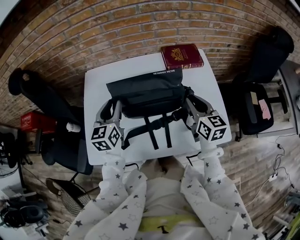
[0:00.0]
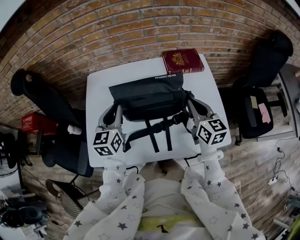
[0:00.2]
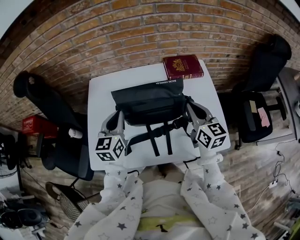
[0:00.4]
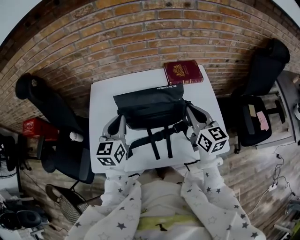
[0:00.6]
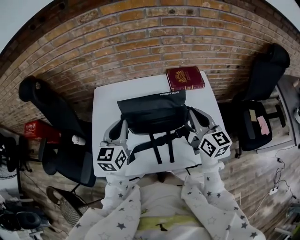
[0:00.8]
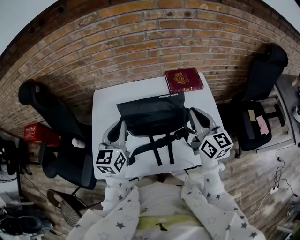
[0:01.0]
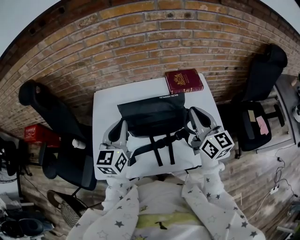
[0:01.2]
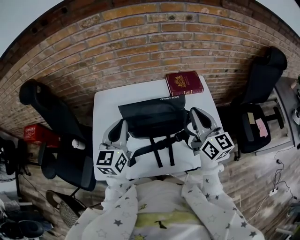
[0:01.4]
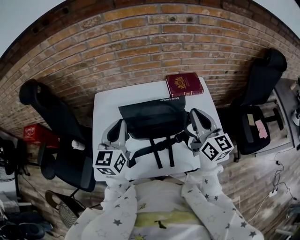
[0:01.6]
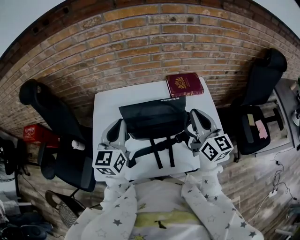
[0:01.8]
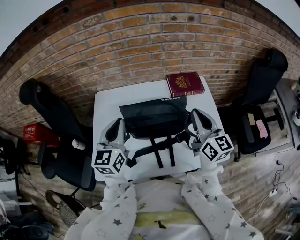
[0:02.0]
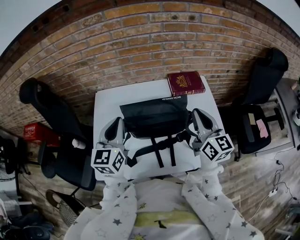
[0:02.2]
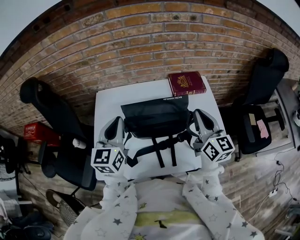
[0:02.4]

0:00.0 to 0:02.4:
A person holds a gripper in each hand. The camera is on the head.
0:00.0 to 0:01.2: Both grippers move upward, approximately 10 cm. The right gripper closes its fingers. The left gripper closes up.
0:01.2 to 0:02.4: The grippers stay close to where they were, moving slightly.

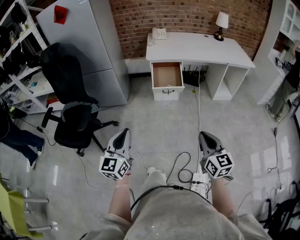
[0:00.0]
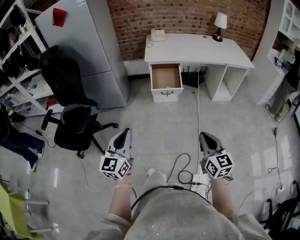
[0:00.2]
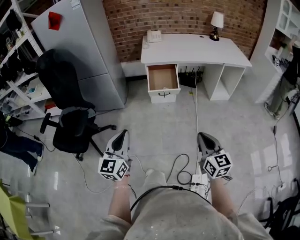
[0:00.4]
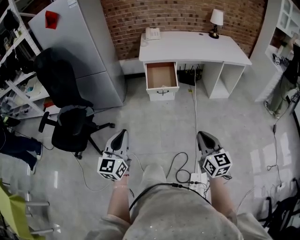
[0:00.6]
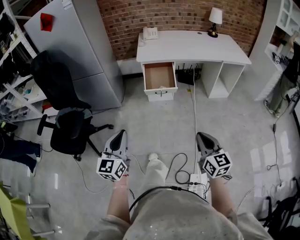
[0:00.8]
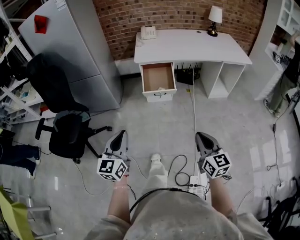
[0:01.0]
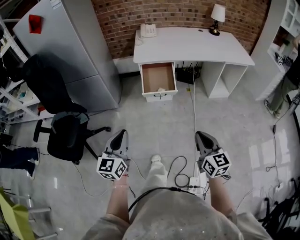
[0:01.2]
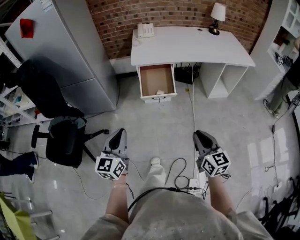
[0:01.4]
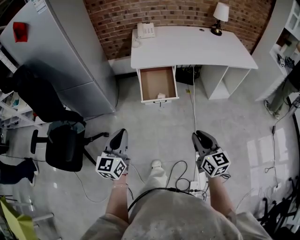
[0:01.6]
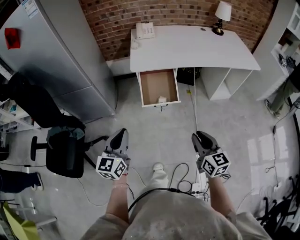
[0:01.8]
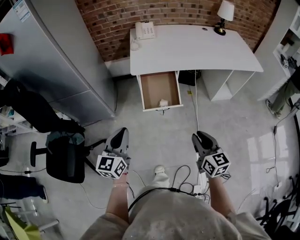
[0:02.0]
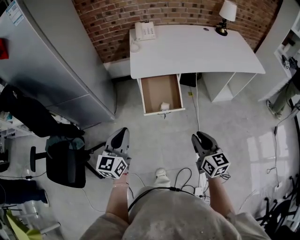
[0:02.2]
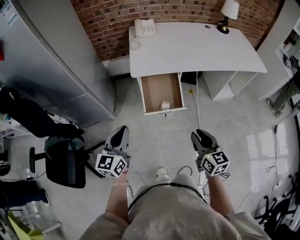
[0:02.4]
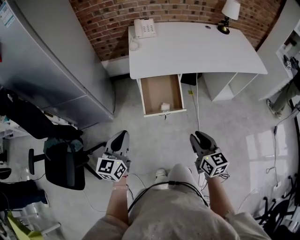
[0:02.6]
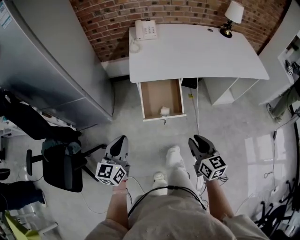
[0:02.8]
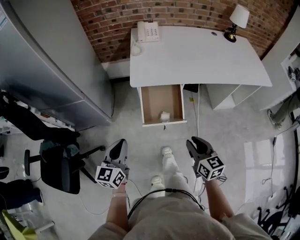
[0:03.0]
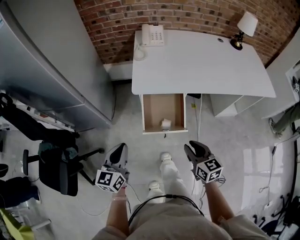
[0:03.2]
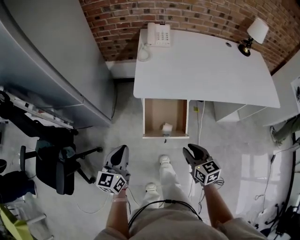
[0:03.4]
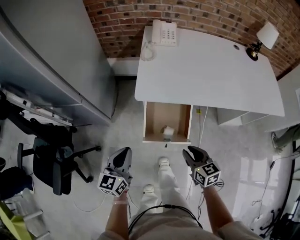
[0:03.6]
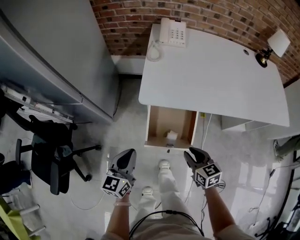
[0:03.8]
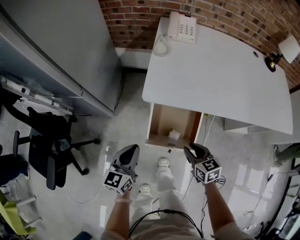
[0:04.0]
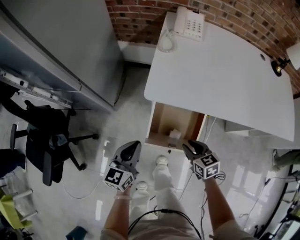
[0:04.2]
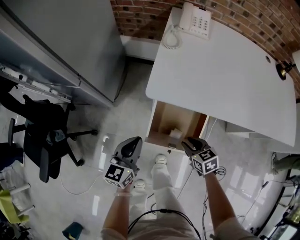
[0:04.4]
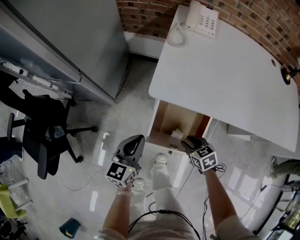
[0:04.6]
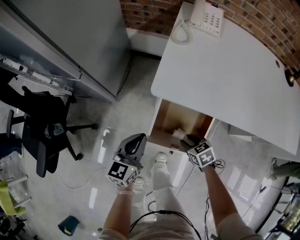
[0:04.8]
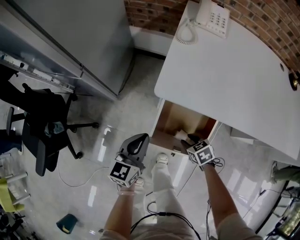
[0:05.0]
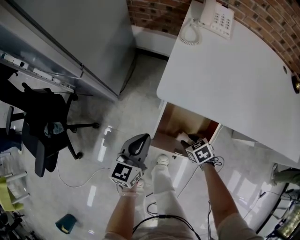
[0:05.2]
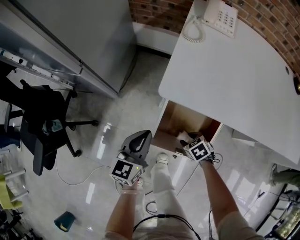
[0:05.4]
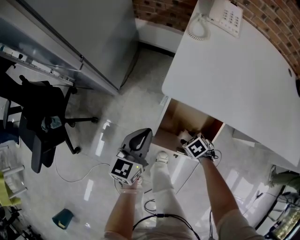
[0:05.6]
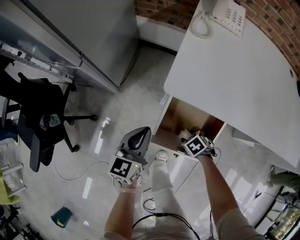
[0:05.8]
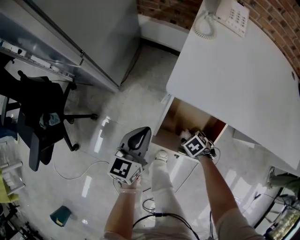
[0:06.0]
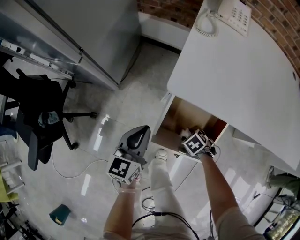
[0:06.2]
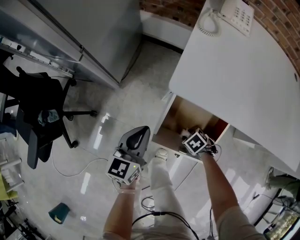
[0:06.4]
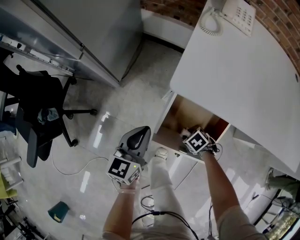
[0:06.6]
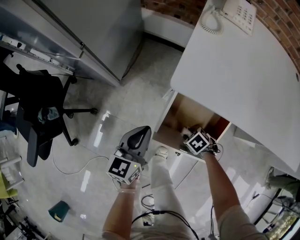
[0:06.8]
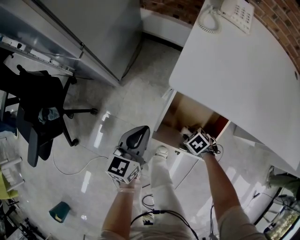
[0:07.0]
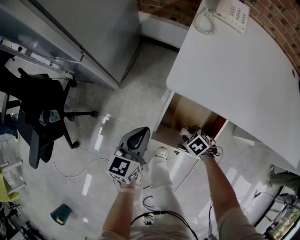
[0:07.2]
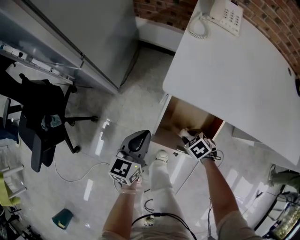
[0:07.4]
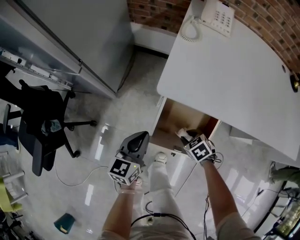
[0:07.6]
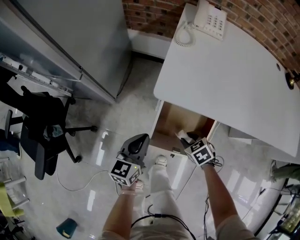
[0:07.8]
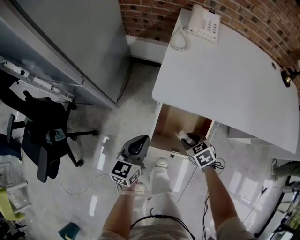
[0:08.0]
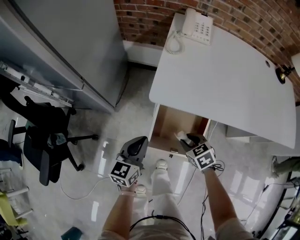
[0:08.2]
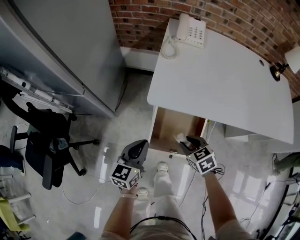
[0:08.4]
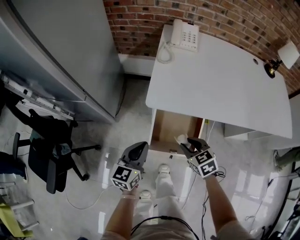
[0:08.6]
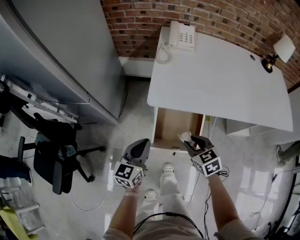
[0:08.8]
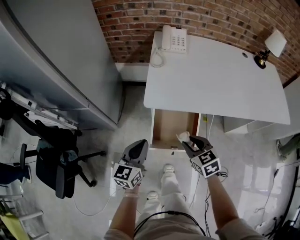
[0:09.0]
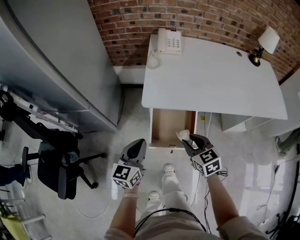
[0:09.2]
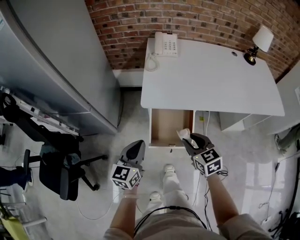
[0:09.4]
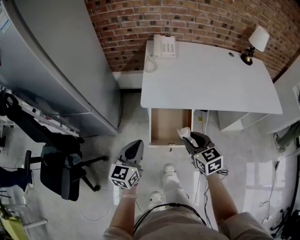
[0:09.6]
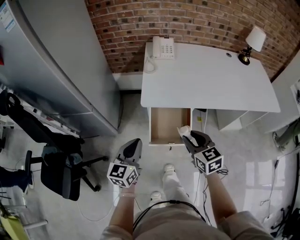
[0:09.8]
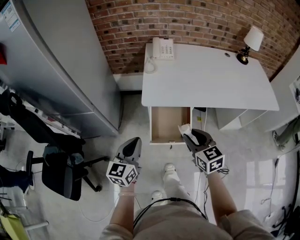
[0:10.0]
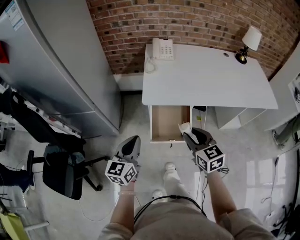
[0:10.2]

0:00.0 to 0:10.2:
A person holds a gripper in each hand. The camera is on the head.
0:00.0 to 0:01.4: Both grippers move forward, roughly 15 cm.
0:01.4 to 0:03.0: Both grippers travel together forward, roughly 25 cm.
0:03.0 to 0:04.4: The right gripper moves forward and downward, approximately 30 cm, and rotates roughly 40 degrees; the left gripper is displaced forward, downward and to the right by approximately 20 cm.
0:04.4 to 0:05.8: The right gripper goes about 15 cm downward, and points its fingers some 30 degrees further downward; the left gripper travels downward by about 5 cm.
0:05.8 to 0:07.2: The grippers stay close to where they were, moving slightly.
0:07.2 to 0:08.8: The left gripper goes roughly 10 cm upward; the right gripper shifts approximately 25 cm upward, and tilts its fingers about 30 degrees upward.
0:08.8 to 0:10.2: The grippers both shift upward and backward by approximately 15 cm. The right gripper changes its angle by about 20 degrees.

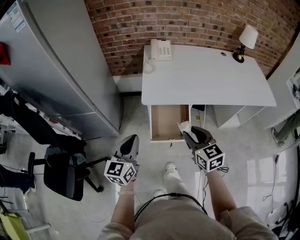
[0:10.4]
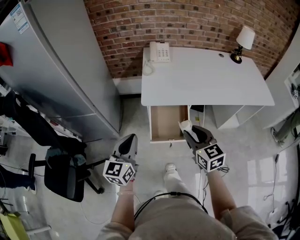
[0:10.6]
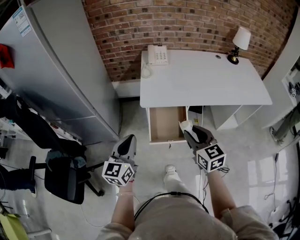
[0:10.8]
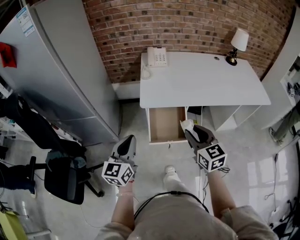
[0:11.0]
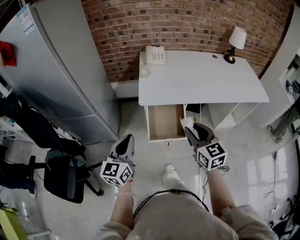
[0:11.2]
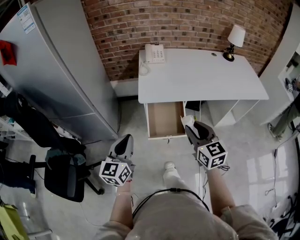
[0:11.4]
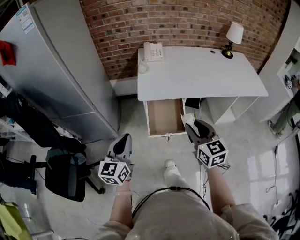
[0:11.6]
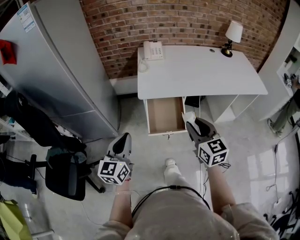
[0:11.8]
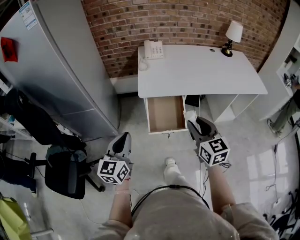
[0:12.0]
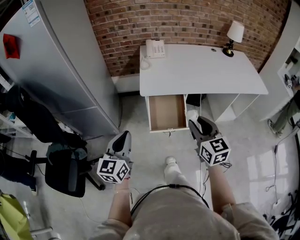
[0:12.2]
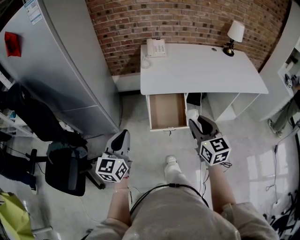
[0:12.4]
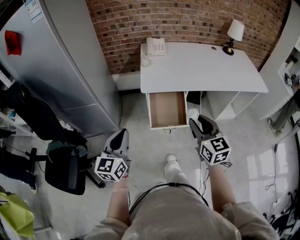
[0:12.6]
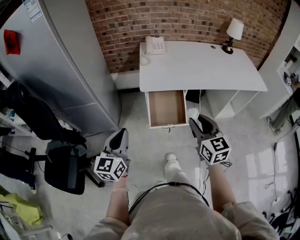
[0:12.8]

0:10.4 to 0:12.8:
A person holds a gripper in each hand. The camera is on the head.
0:10.4 to 0:11.6: The right gripper heads upward and backward, covering some 10 cm. Meanwhile the left gripper travels backward by approximately 5 cm.
0:11.6 to 0:12.8: The grippers move only a little.

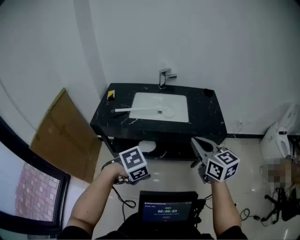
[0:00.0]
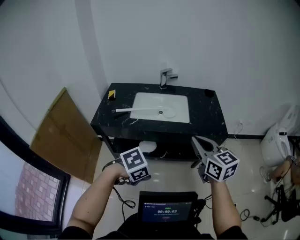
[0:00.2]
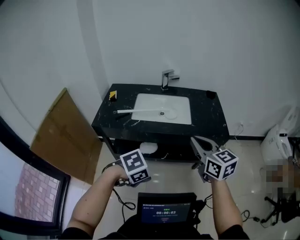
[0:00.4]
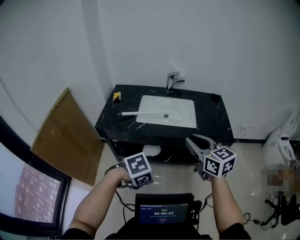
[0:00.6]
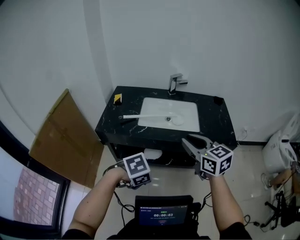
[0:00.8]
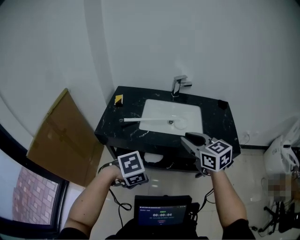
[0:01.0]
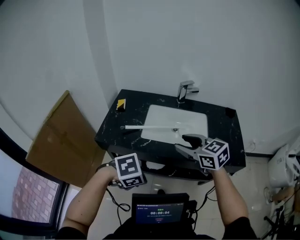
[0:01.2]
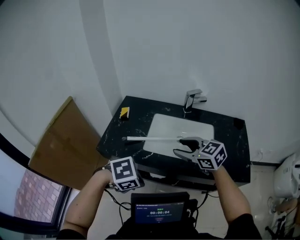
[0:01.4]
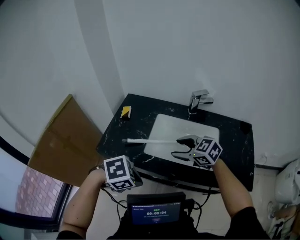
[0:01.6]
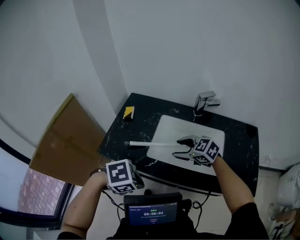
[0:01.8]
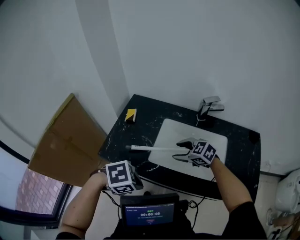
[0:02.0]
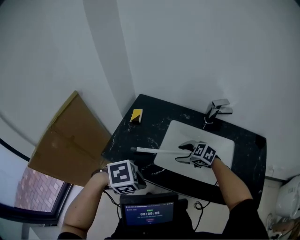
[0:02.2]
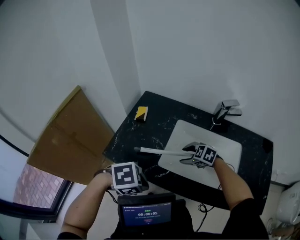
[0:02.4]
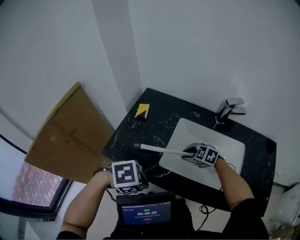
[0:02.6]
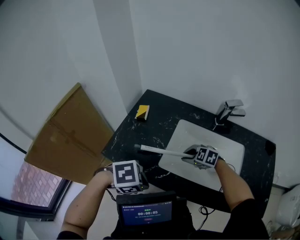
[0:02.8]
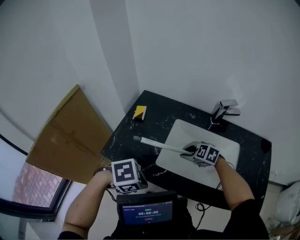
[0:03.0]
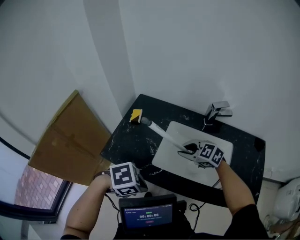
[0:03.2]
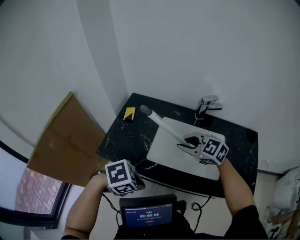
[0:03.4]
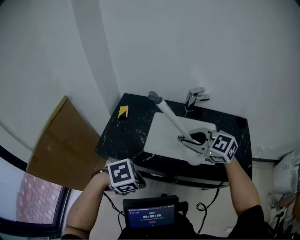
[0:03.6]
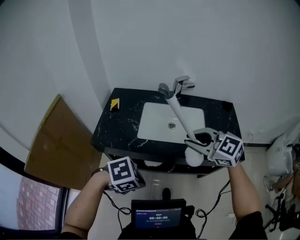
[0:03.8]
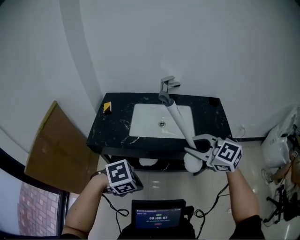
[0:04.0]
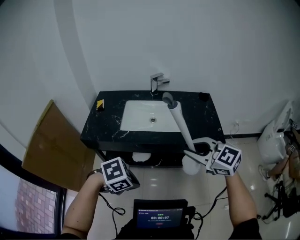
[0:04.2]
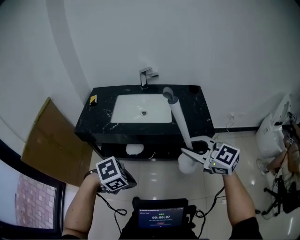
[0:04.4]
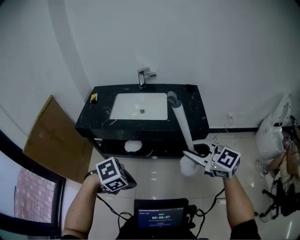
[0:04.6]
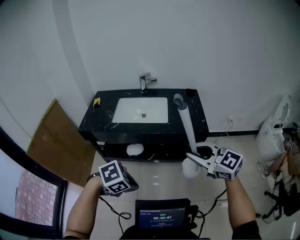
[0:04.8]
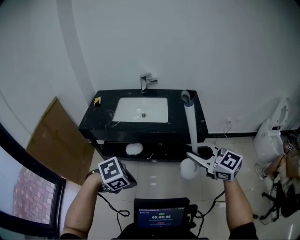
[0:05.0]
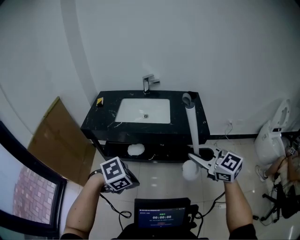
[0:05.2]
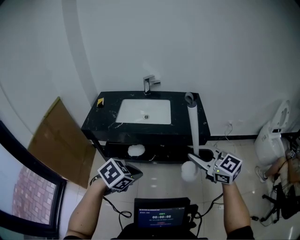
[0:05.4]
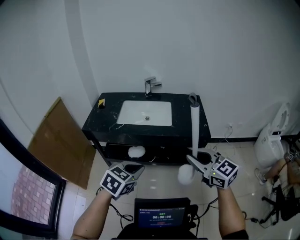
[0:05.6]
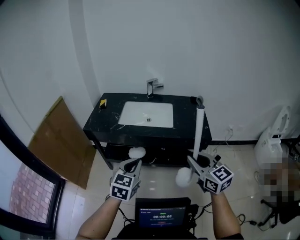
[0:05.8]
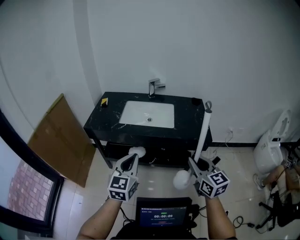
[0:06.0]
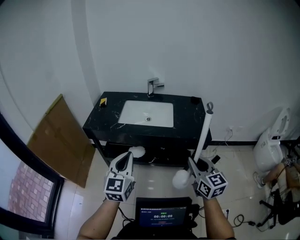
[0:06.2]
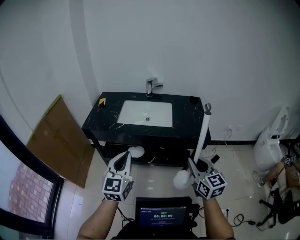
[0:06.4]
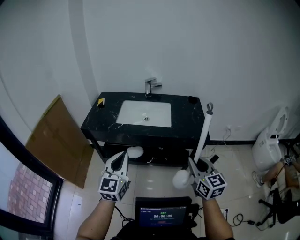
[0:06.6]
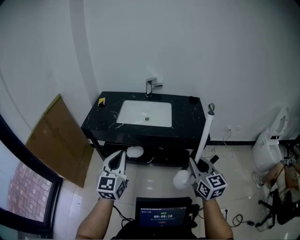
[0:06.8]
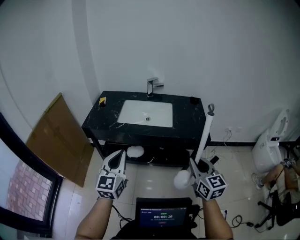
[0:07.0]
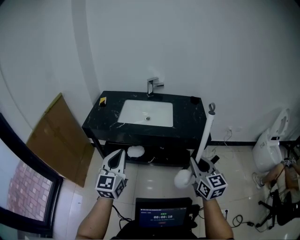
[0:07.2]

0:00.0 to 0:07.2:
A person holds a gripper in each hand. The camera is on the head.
0:00.0 to 0:01.4: The left gripper moves roughly 30 cm, while the right gripper ends up roughly 40 cm from where it was, changes its angle by roughly 40 degrees, and opens up.
0:01.4 to 0:02.8: The left gripper ends up about 20 cm from where it was. Meanwhile the right gripper shifts roughly 25 cm downward, swivels some 40 degrees, and closes its fingers.
0:02.8 to 0:04.4: The pair of grippers is taken approximately 50 cm. The right gripper tips its fingers upward by roughly 40 degrees.
0:04.4 to 0:05.8: The left gripper goes approximately 10 cm upward, and angles its fingers upward, by approximately 40 degrees, while the right gripper changes place by about 10 cm, and changes its angle by approximately 20 degrees.
0:05.8 to 0:07.2: The left gripper shifts some 5 cm to the left, and rotates some 20 degrees.

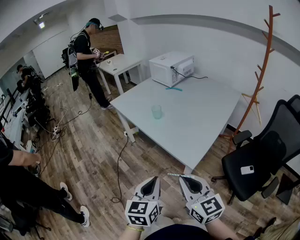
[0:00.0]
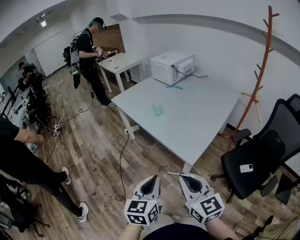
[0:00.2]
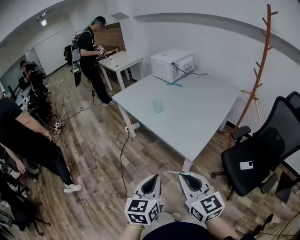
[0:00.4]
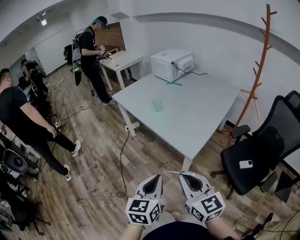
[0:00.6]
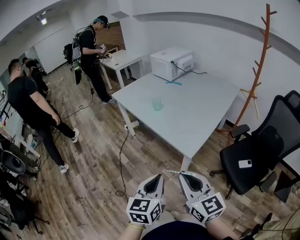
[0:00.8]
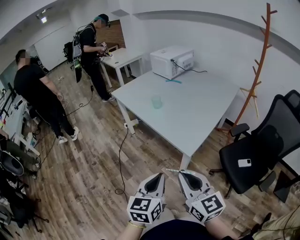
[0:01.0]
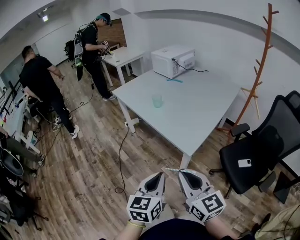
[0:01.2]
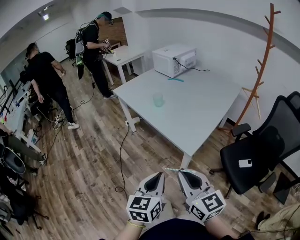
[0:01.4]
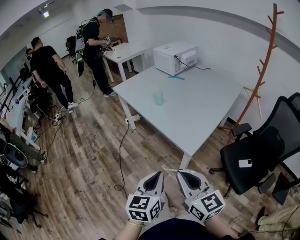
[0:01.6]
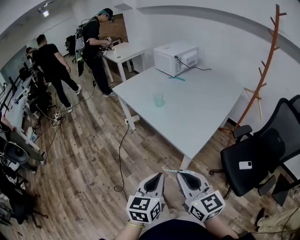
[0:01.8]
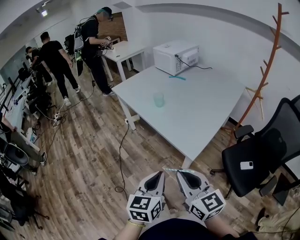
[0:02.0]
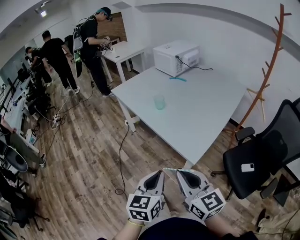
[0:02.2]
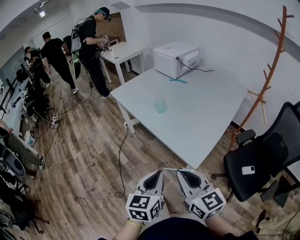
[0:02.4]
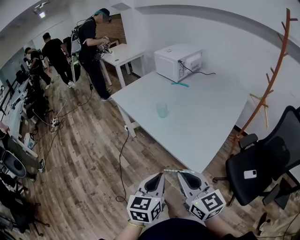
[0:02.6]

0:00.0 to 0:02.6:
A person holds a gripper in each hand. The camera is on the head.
0:00.0 to 0:01.2: Both grippers move backward, some 5 cm.
0:01.2 to 0:02.6: Both grippers travel together forward, some 15 cm.
